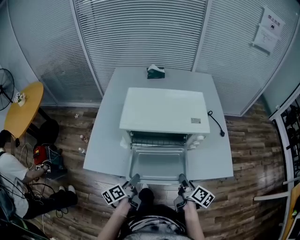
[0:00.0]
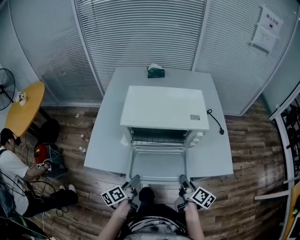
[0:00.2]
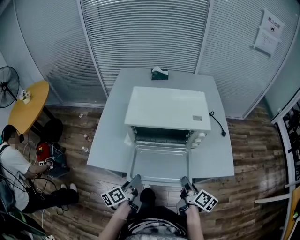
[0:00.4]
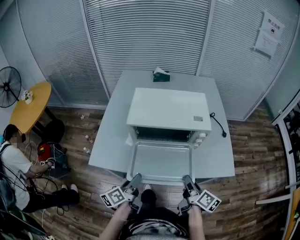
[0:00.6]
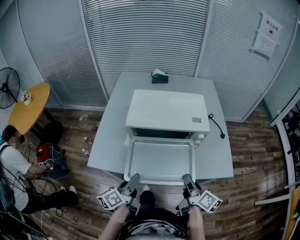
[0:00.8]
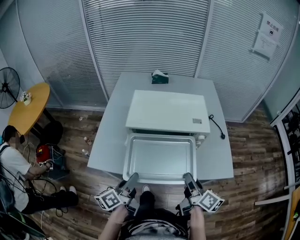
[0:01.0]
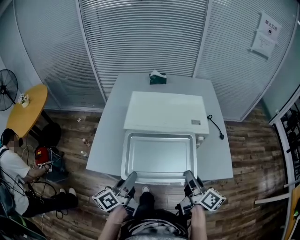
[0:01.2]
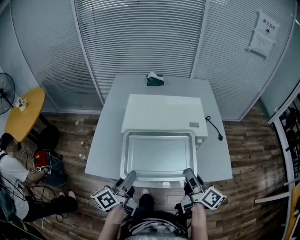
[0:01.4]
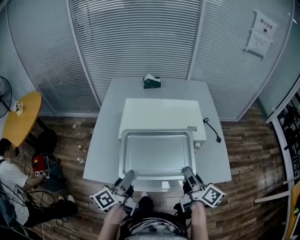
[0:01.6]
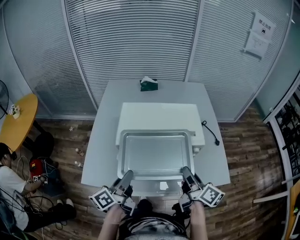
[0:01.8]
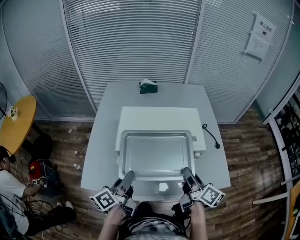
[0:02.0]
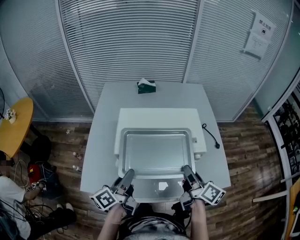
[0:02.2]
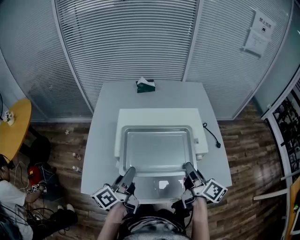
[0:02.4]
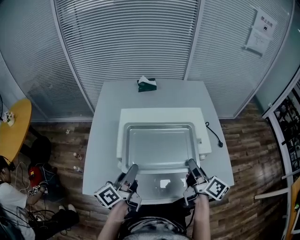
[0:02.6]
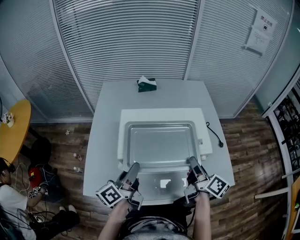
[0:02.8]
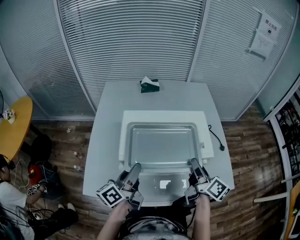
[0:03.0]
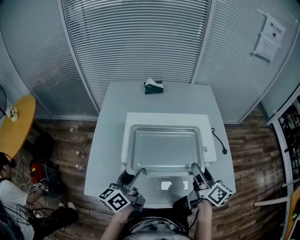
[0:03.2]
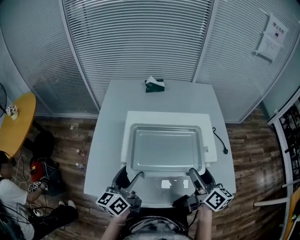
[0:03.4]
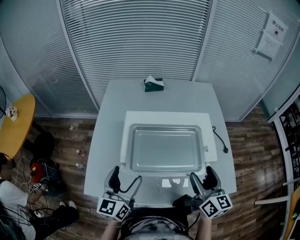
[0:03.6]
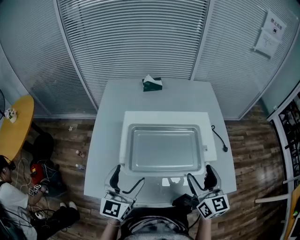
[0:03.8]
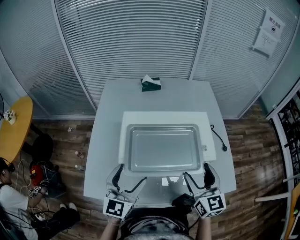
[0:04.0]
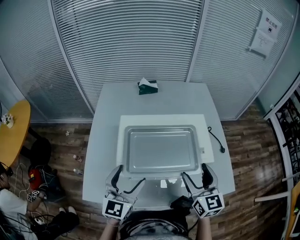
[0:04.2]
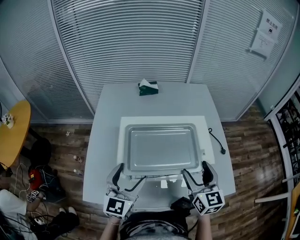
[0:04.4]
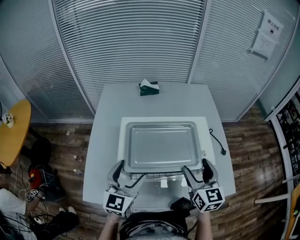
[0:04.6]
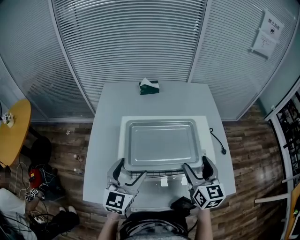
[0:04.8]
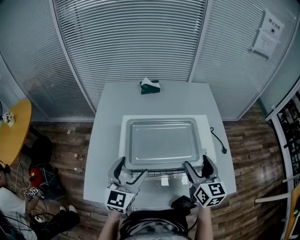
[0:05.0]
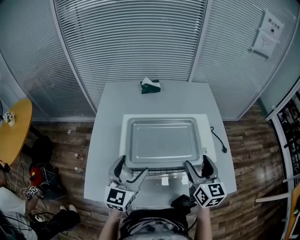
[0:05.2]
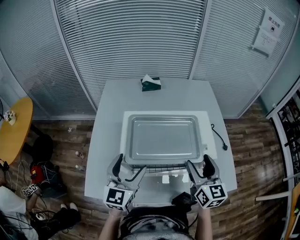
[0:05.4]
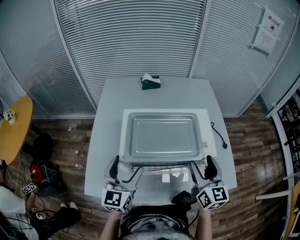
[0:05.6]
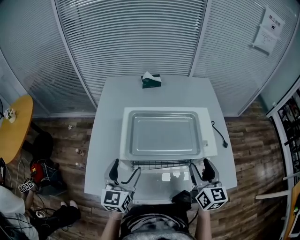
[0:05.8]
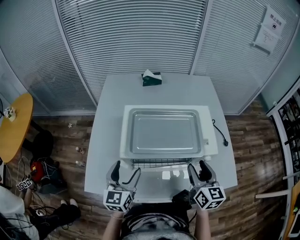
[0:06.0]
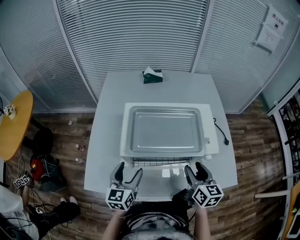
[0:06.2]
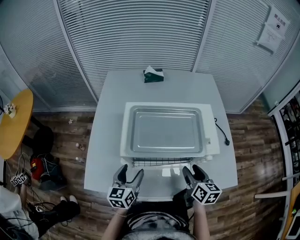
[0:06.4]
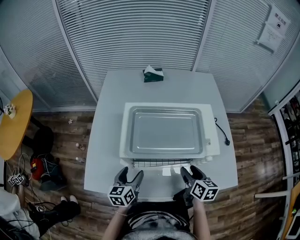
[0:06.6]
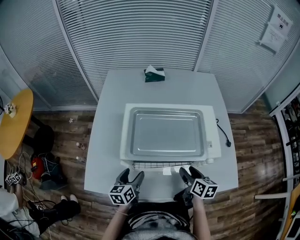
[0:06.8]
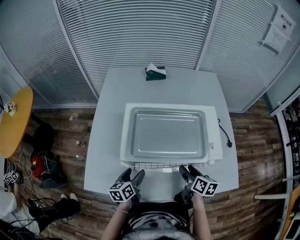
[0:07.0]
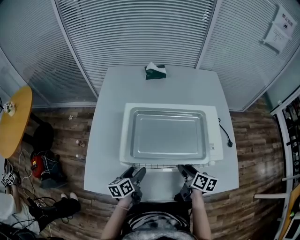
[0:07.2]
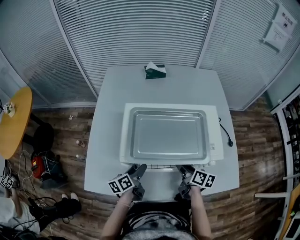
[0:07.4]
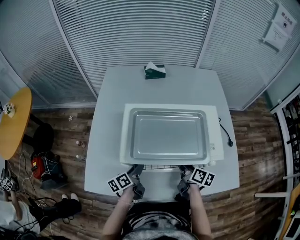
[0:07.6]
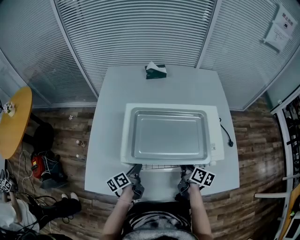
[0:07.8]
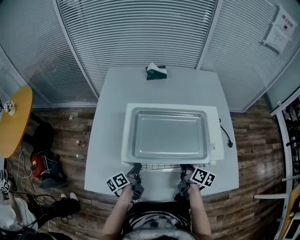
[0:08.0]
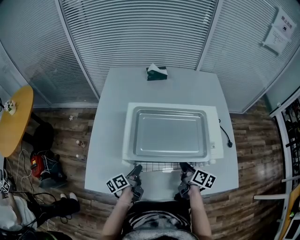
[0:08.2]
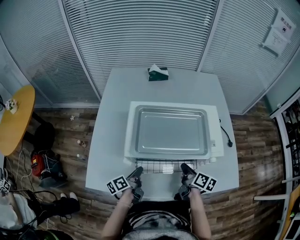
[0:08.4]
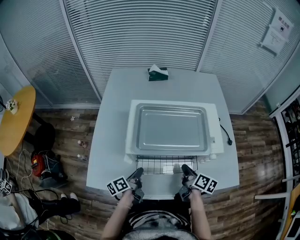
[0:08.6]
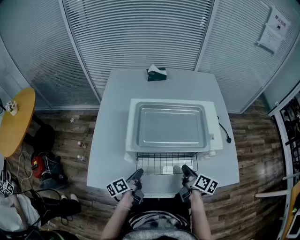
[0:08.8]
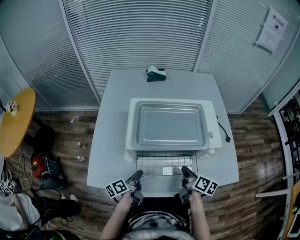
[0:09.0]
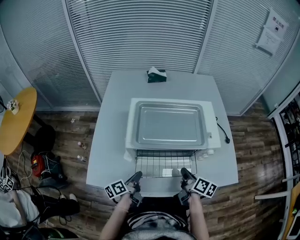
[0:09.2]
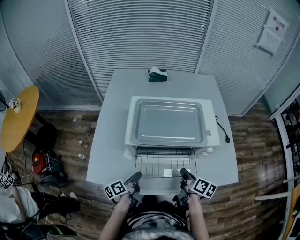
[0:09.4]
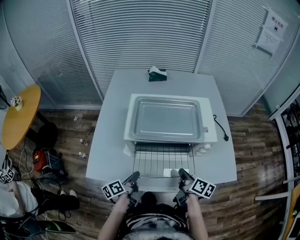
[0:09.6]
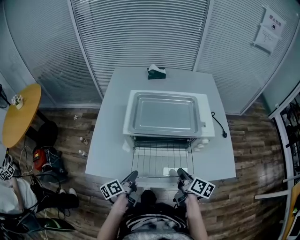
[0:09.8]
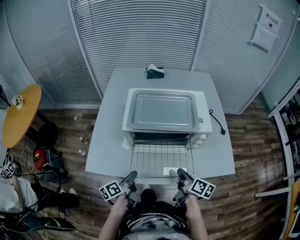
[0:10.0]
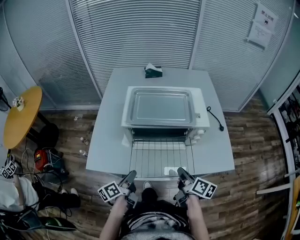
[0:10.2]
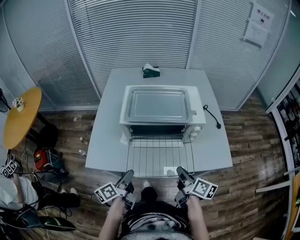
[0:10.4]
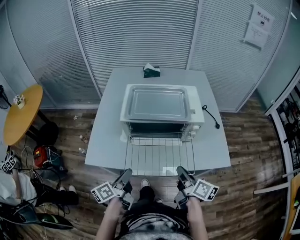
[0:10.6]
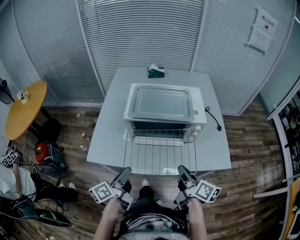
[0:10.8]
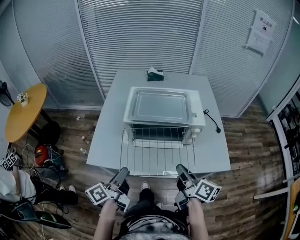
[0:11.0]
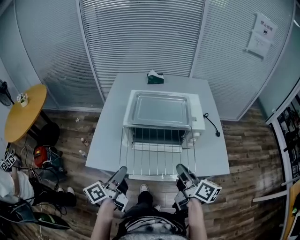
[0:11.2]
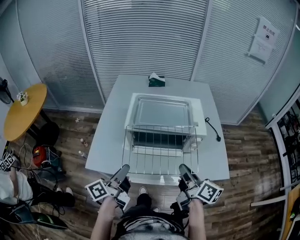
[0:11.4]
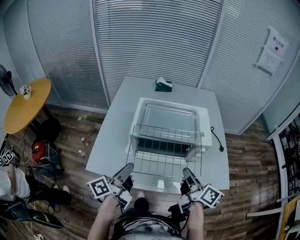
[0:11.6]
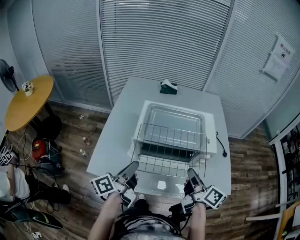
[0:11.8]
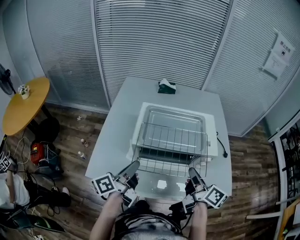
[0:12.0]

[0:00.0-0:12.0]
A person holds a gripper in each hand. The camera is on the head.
0:00.0 to 0:01.6: The grippers both shift upward by some 15 cm. The left gripper turns by roughly 20 degrees. The right gripper rotates roughly 20 degrees.
0:01.6 to 0:03.0: The two grippers go about 15 cm forward.
0:03.0 to 0:04.4: The left gripper rolls clockwise, seen from behind, by approximately 60 degrees, and opens. Meanwhile the right gripper twists roughly 50 degrees counterclockwise, seen from behind, and opens.
0:04.4 to 0:06.0: The right gripper ends up about 5 cm from where it was, while the left gripper is displaced downward by approximately 5 cm.
0:06.0 to 0:07.6: The two grippers go approximately 15 cm downward. The right gripper turns by some 40 degrees. Meanwhile the left gripper rolls counterclockwise, seen from behind, by roughly 60 degrees, and closes.
0:07.6 to 0:09.0: The grippers both shift backward by about 10 cm. The right gripper closes.
0:09.0 to 0:10.4: The grippers both shift backward and upward by approximately 15 cm.
0:10.4 to 0:12.0: Both grippers move forward and upward, approximately 15 cm.

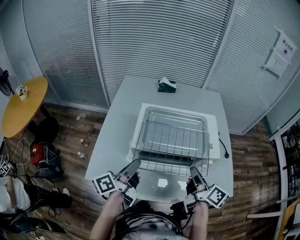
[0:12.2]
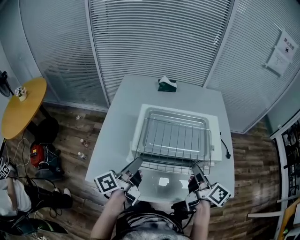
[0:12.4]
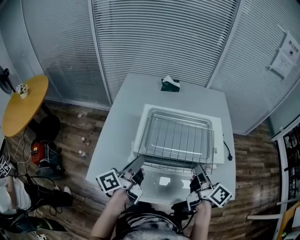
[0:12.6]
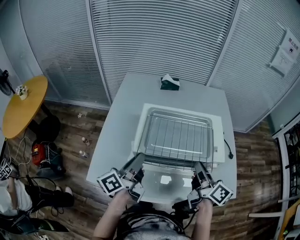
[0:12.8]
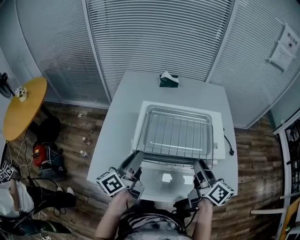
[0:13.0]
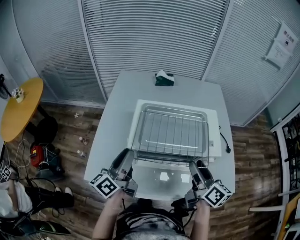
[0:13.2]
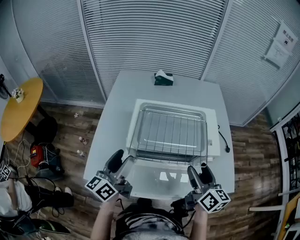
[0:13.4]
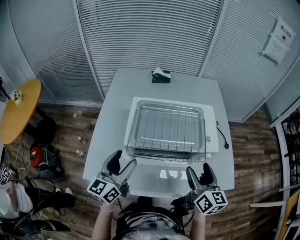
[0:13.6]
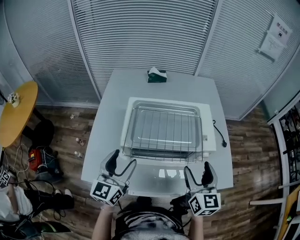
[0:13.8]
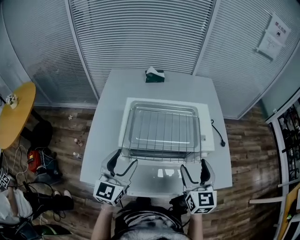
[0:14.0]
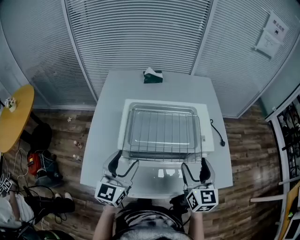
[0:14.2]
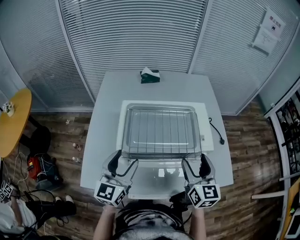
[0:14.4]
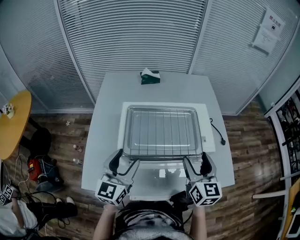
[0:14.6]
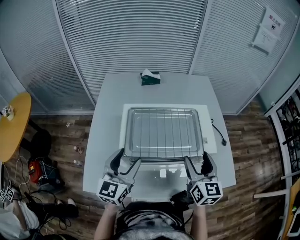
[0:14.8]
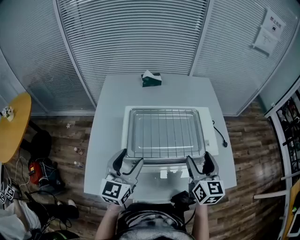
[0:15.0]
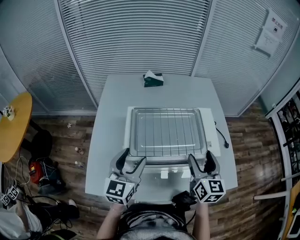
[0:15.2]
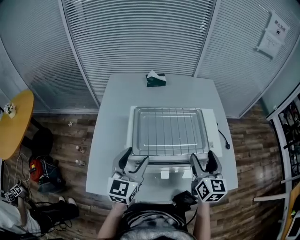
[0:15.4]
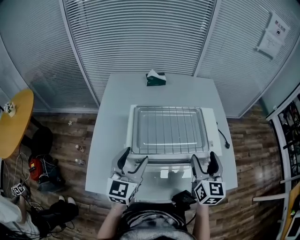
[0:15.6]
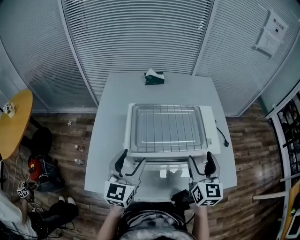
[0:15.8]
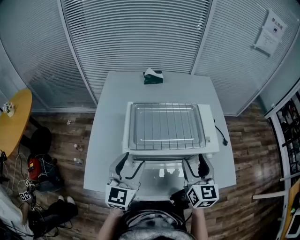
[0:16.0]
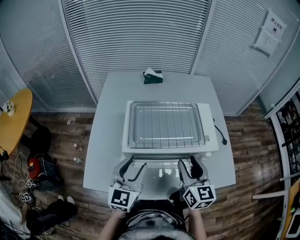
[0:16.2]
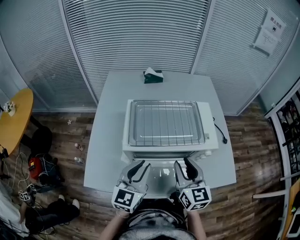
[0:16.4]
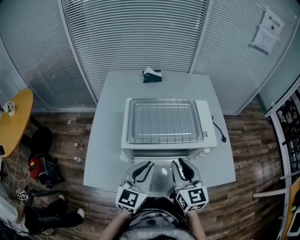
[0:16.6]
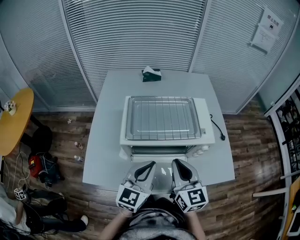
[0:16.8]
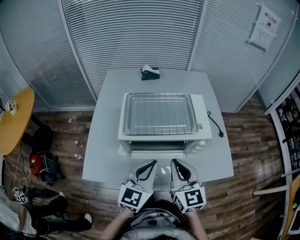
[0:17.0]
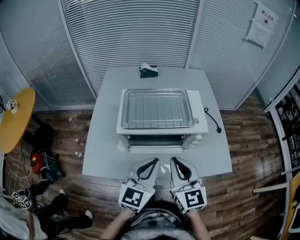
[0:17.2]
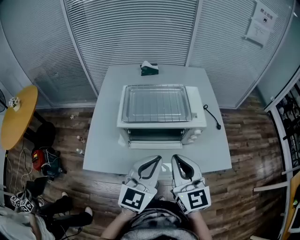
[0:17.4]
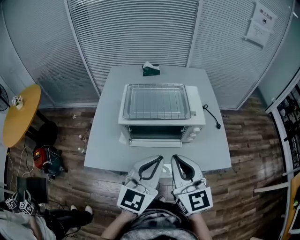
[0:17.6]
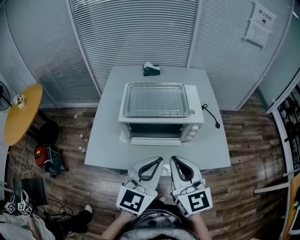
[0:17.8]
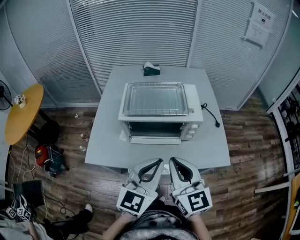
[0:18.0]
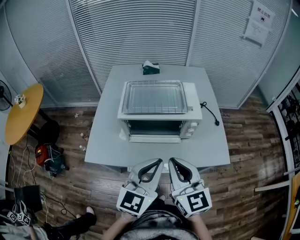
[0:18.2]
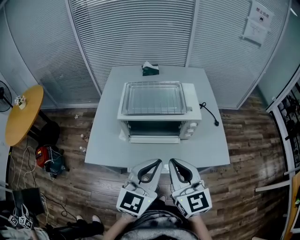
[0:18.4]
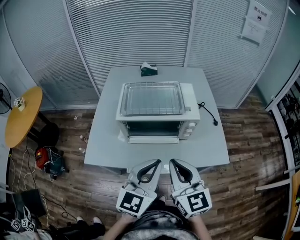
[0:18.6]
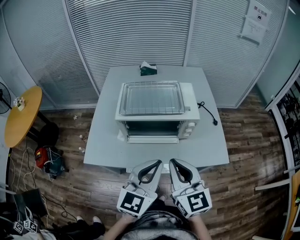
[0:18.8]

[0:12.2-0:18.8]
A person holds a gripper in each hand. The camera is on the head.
0:12.2 to 0:13.8: The left gripper rolls clockwise, seen from behind, by about 60 degrees, and opens, while the right gripper rotates around the line of its fingers by roughly 50 degrees, counterclockwise from behind, and opens.
0:13.8 to 0:15.4: The right gripper shifts about 5 cm forward; the left gripper changes place by approximately 5 cm.
0:15.4 to 0:17.2: The right gripper is displaced backward and to the left by about 15 cm, and closes up. Meanwhile the left gripper moves to the right and backward, about 20 cm, and closes its fingers.
0:17.2 to 0:18.8: The grippers both shift backward by roughly 10 cm.

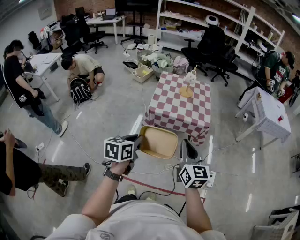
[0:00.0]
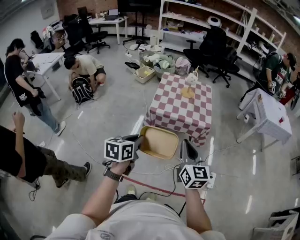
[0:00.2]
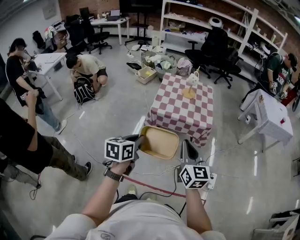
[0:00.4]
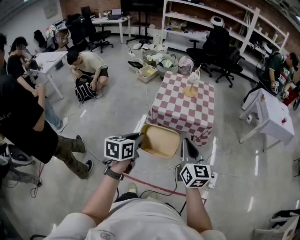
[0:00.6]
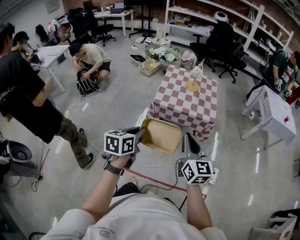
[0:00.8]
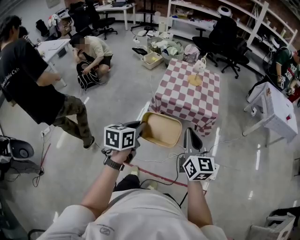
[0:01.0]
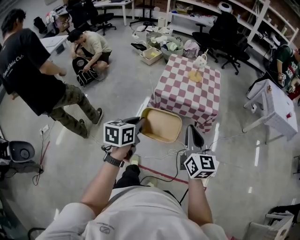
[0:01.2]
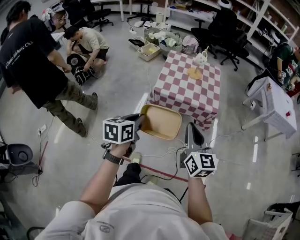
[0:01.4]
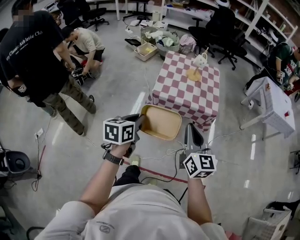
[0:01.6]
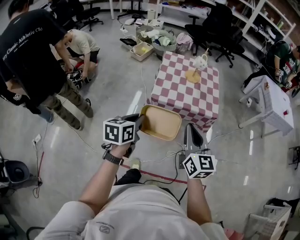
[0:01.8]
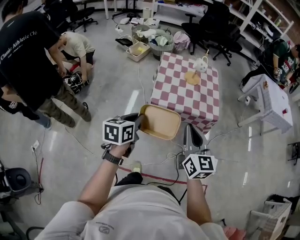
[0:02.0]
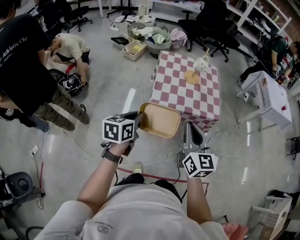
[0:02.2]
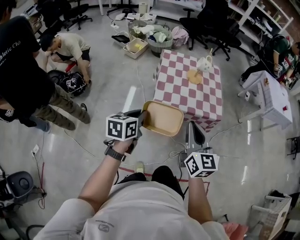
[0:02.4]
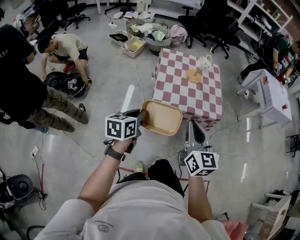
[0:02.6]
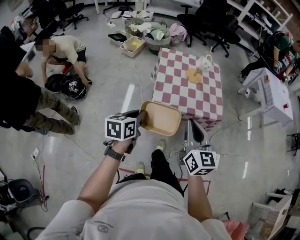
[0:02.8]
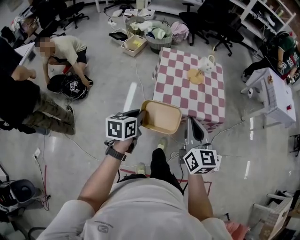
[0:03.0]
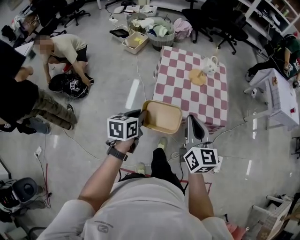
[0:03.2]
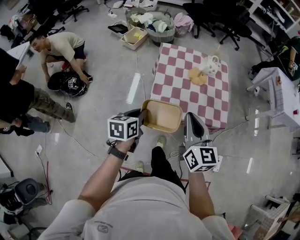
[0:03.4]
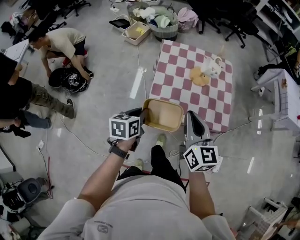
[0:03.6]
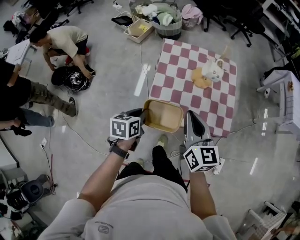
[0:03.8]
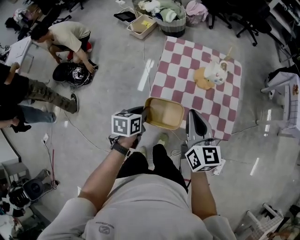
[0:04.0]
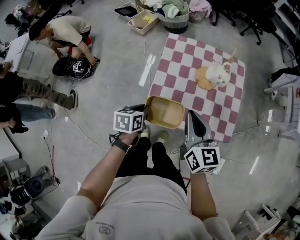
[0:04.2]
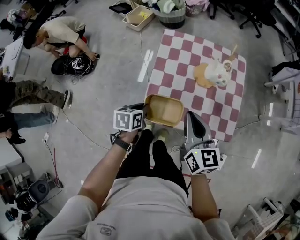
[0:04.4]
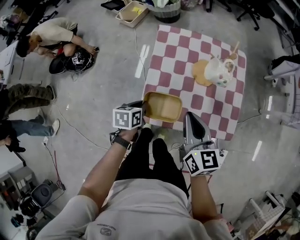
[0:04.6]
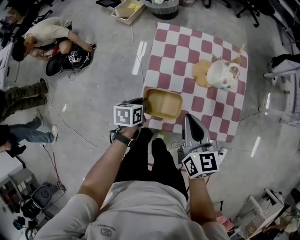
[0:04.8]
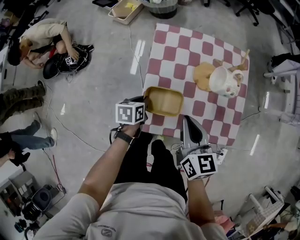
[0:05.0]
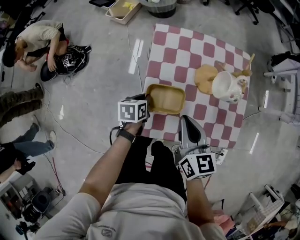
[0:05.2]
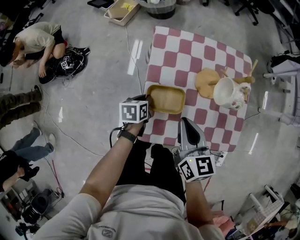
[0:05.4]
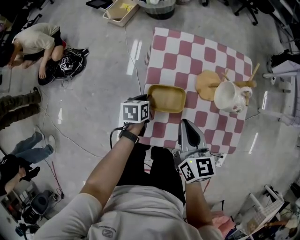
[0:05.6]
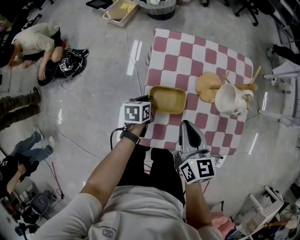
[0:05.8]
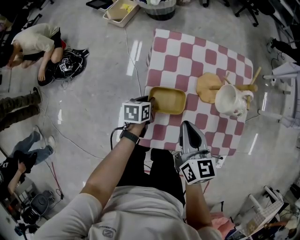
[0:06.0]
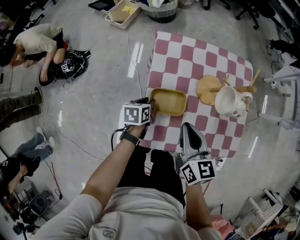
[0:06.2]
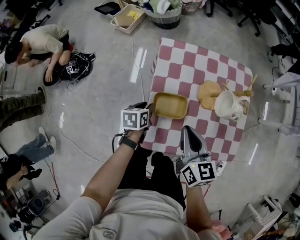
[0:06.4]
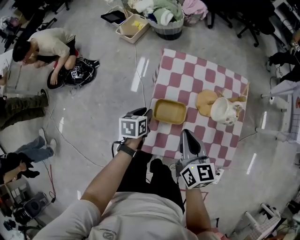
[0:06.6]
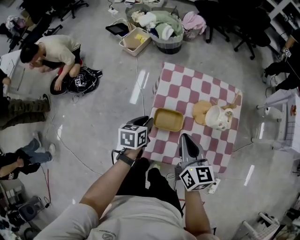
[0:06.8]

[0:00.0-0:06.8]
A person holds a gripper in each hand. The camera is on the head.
0:00.0 to 0:01.4: The grippers make only small movements.
0:01.4 to 0:02.8: The grippers both shift forward and to the left by some 25 cm.
0:02.8 to 0:04.0: The right gripper heads forward, covering roughly 25 cm; the left gripper heads forward and downward, covering about 25 cm.
0:04.0 to 0:05.4: The two grippers go some 25 cm downward and forward.
0:05.4 to 0:06.8: The right gripper heads upward, covering approximately 5 cm. Meanwhile the left gripper moves upward, approximately 15 cm.
